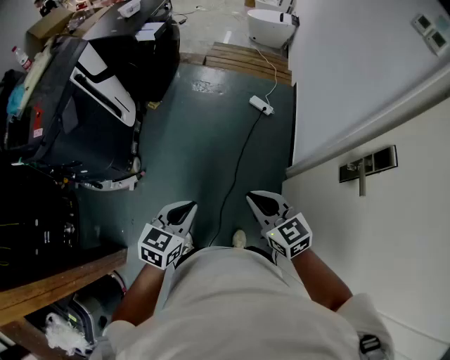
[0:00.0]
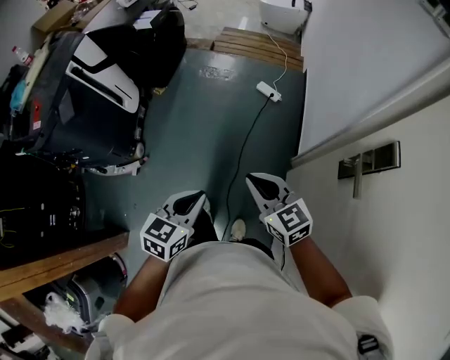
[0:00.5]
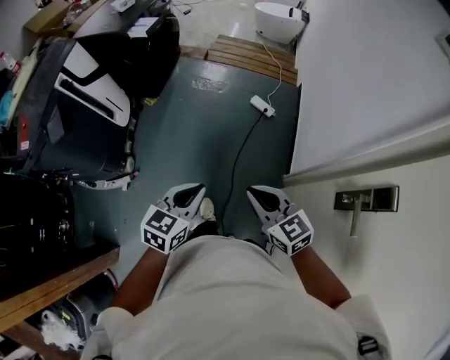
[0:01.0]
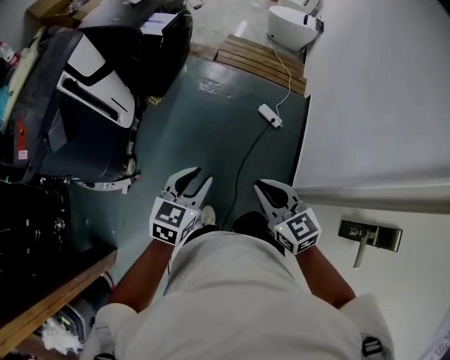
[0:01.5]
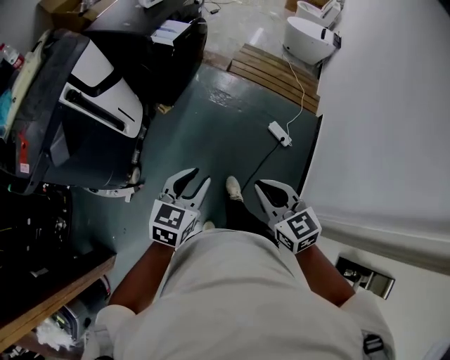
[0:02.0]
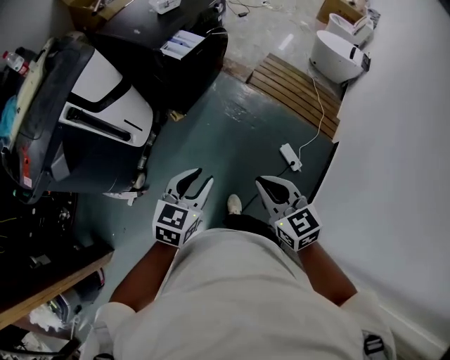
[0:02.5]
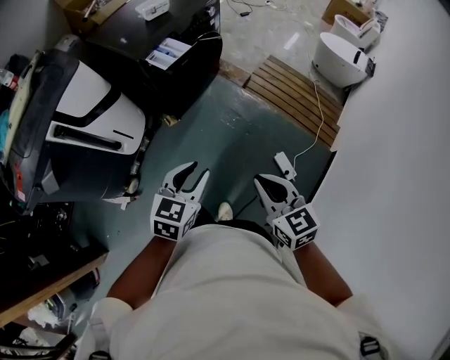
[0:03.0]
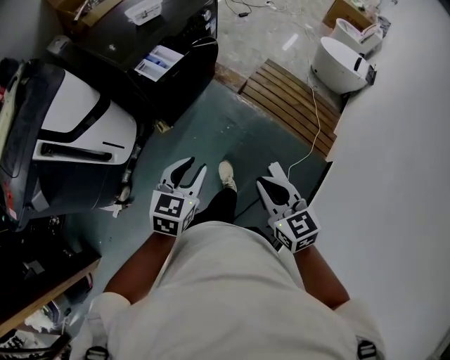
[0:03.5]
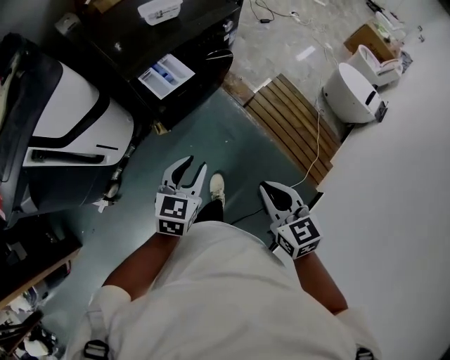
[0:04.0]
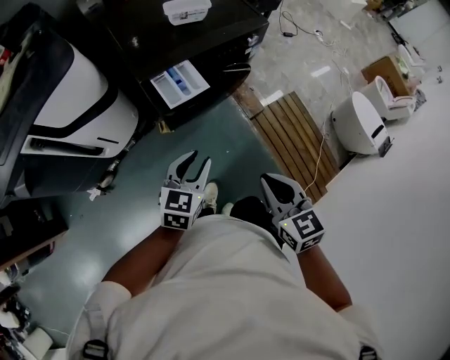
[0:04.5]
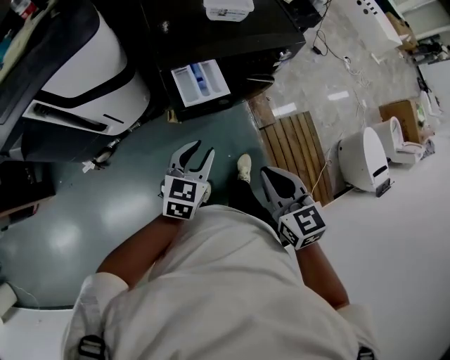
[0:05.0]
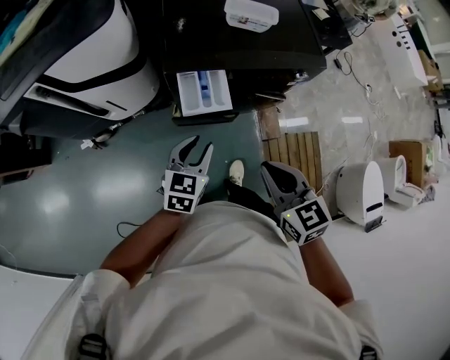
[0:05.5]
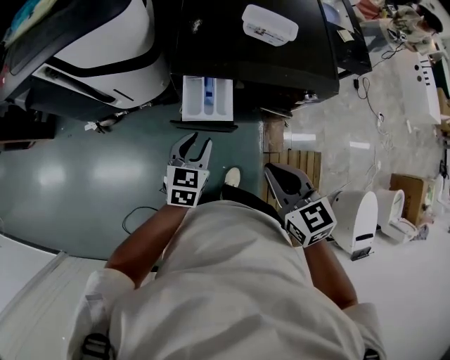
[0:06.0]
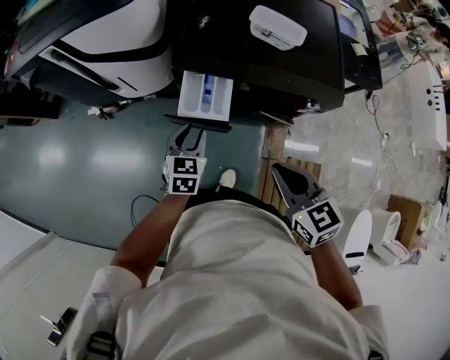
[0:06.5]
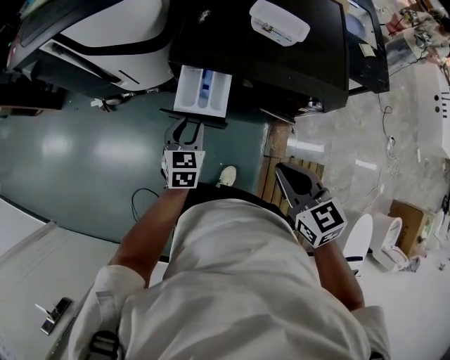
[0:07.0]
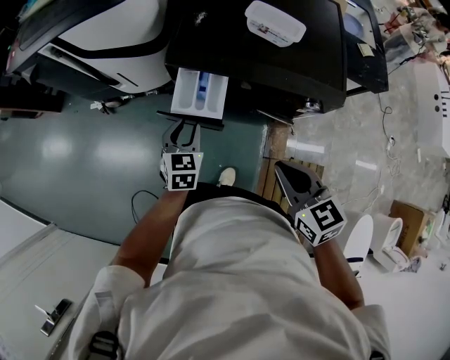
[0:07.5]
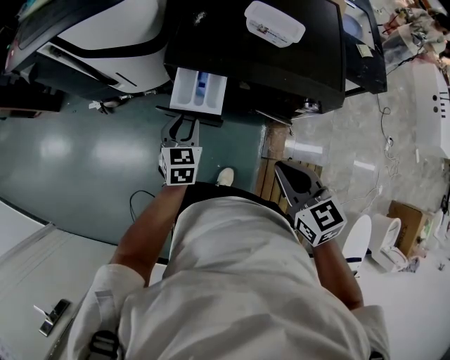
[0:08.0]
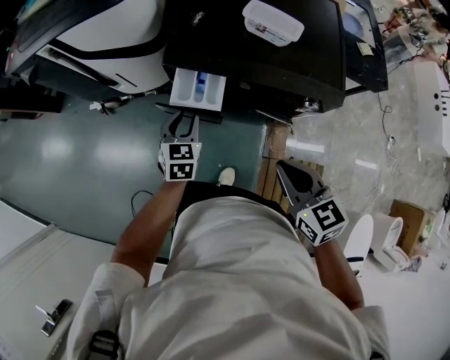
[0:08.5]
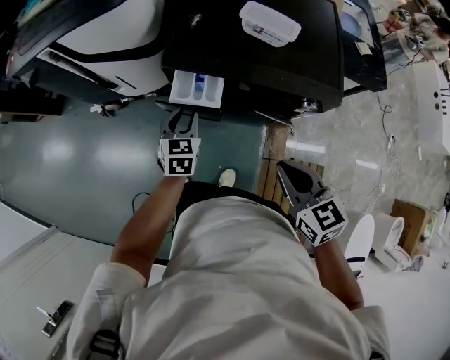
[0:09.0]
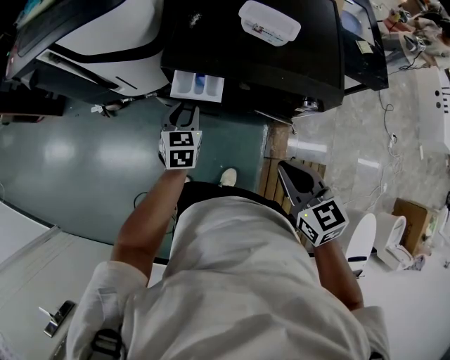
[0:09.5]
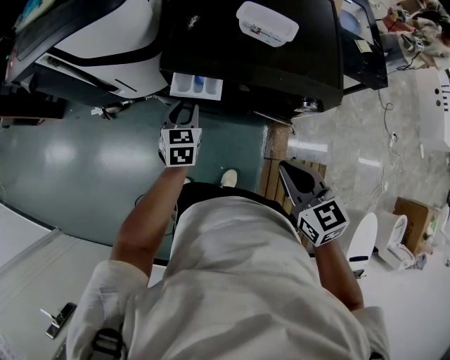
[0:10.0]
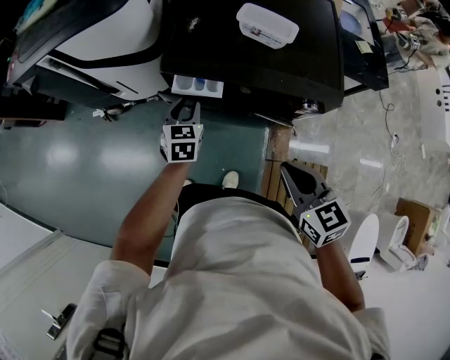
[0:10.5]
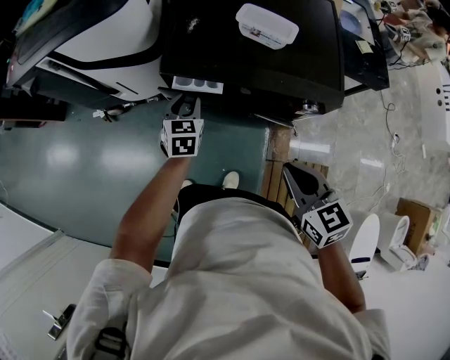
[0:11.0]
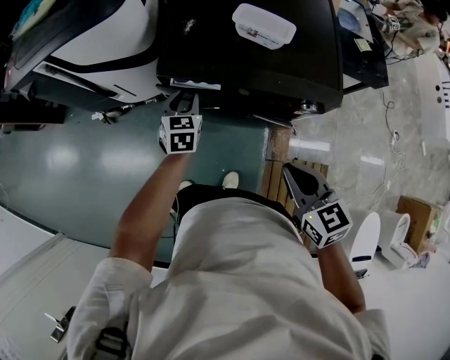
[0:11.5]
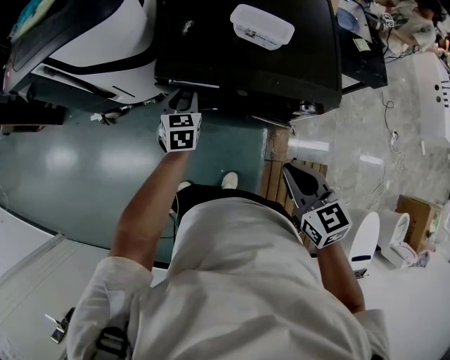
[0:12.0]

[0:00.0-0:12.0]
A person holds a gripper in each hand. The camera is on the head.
0:00.0 to 0:02.0: The grippers both shift forward by approximately 35 cm. The left gripper opens.
0:02.0 to 0:04.0: Both grippers are carried forward, roughly 50 cm. The left gripper swivels some 30 degrees.
0:04.0 to 0:06.0: The left gripper changes place by roughly 25 cm, and turns by approximately 50 degrees. Meanwhile the right gripper changes place by approximately 35 cm, and changes its angle by approximately 50 degrees.
0:06.0 to 0:08.0: The right gripper shifts about 10 cm to the right. Meanwhile the left gripper ends up some 5 cm from where it was, and turns by approximately 20 degrees.
0:08.0 to 0:10.0: The left gripper shifts by about 5 cm.
0:10.0 to 0:12.0: The left gripper travels forward by roughly 5 cm.

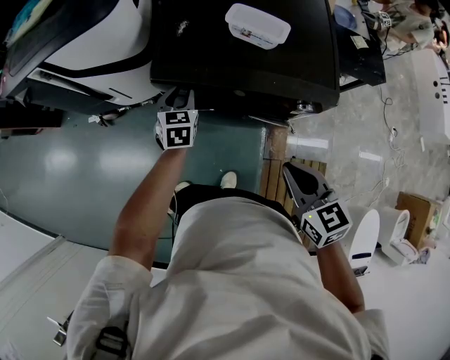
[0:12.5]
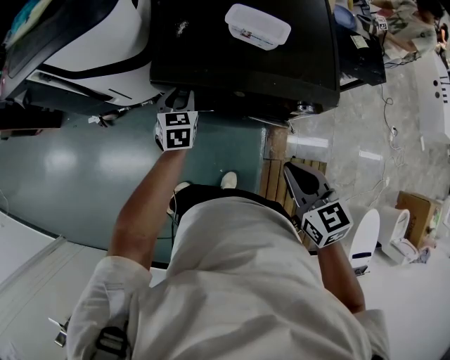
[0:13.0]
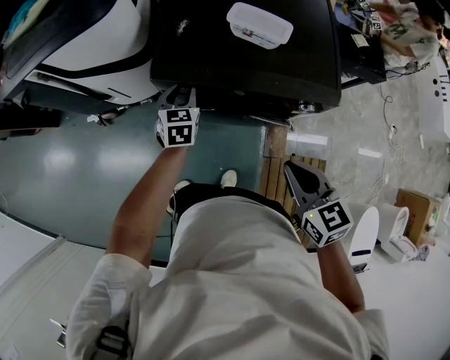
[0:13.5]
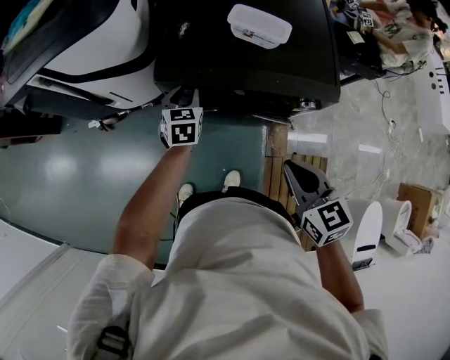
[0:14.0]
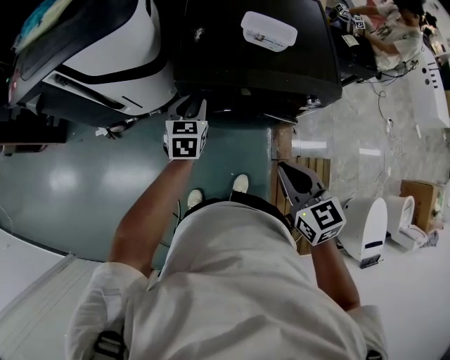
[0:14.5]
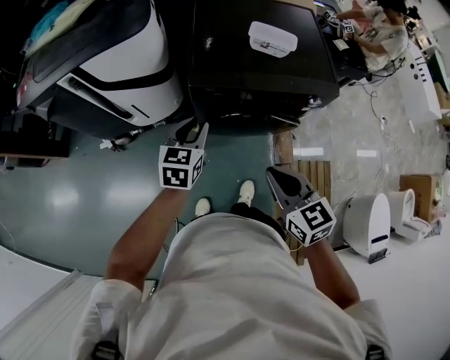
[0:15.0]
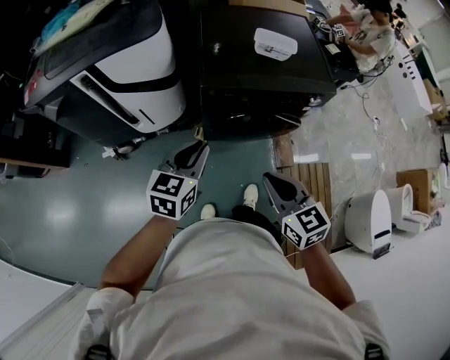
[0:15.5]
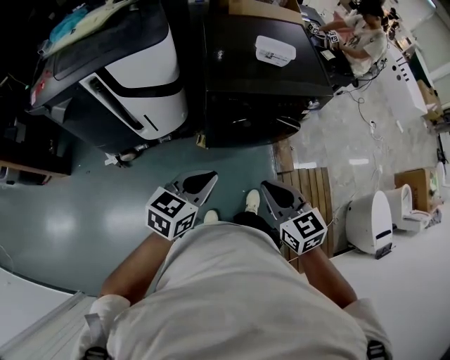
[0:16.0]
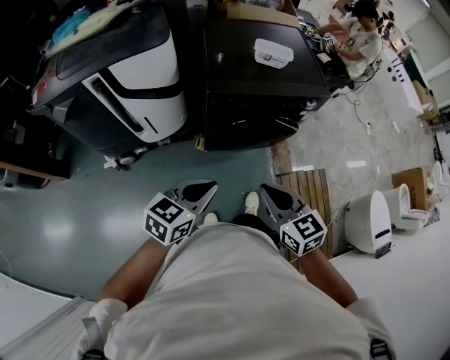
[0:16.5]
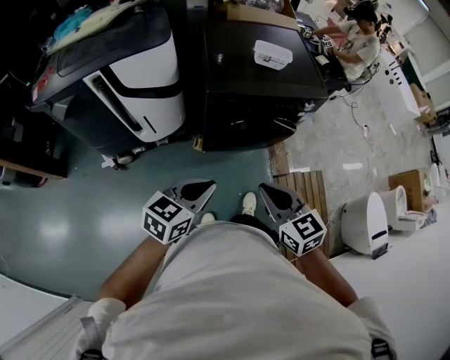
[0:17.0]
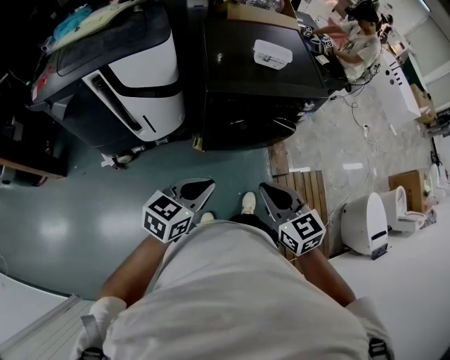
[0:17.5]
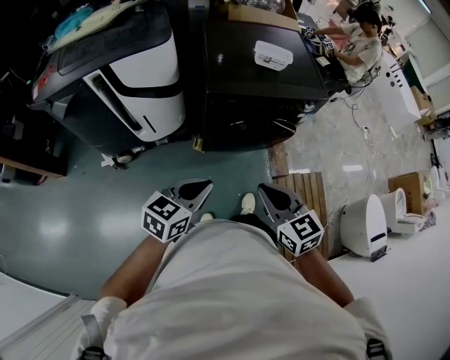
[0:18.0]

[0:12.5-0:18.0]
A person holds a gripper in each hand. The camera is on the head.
0:12.5 to 0:14.5: The left gripper changes place by about 5 cm. The right gripper is displaced to the left by roughly 10 cm.
0:14.5 to 0:16.0: The left gripper heads backward and upward, covering roughly 30 cm, swivels some 40 degrees, and closes its fingers. The right gripper travels to the left and backward by approximately 20 cm.
0:16.0 to 0:18.0: The grippers make only small movements.

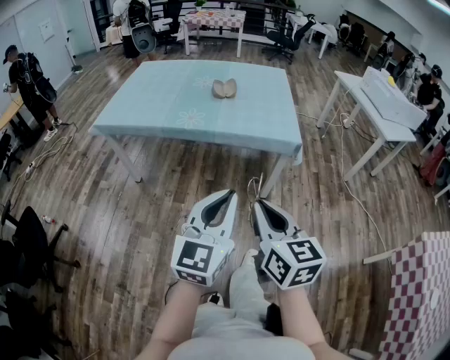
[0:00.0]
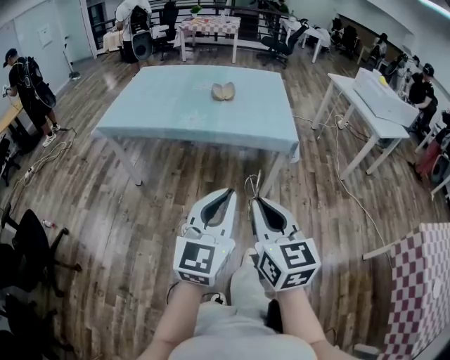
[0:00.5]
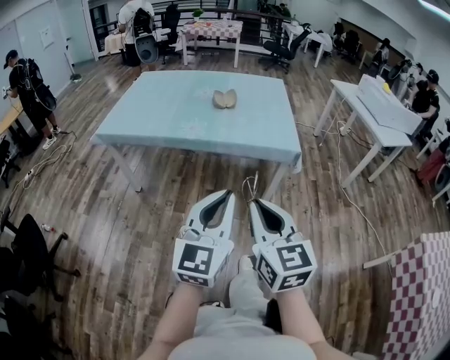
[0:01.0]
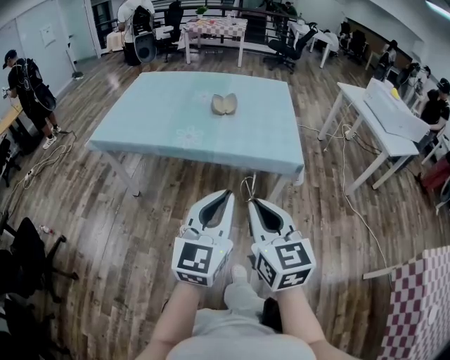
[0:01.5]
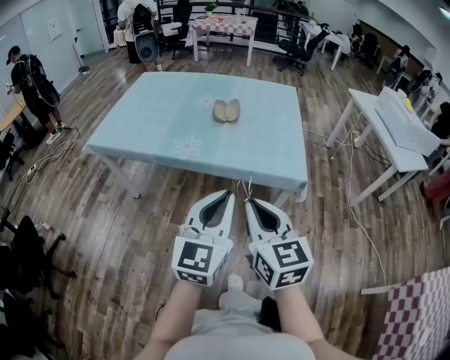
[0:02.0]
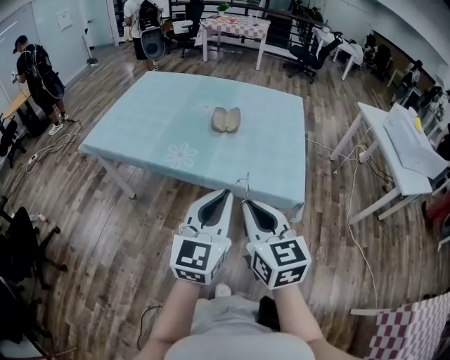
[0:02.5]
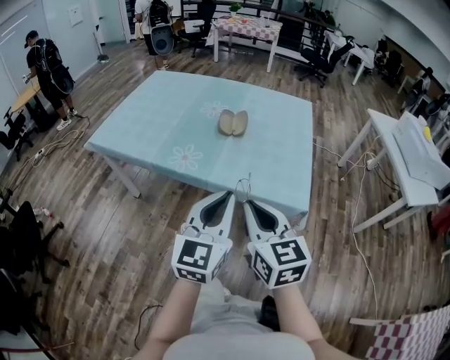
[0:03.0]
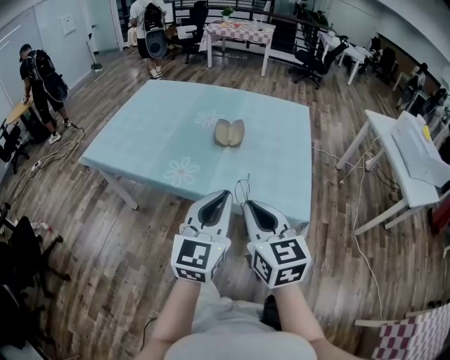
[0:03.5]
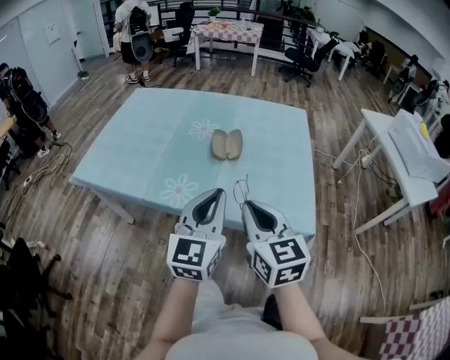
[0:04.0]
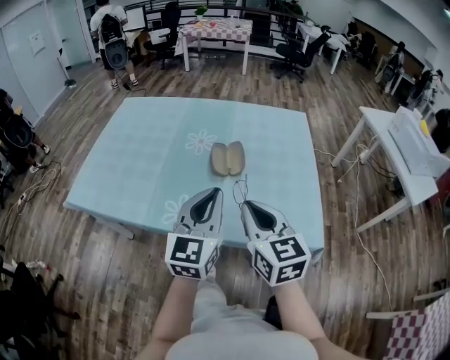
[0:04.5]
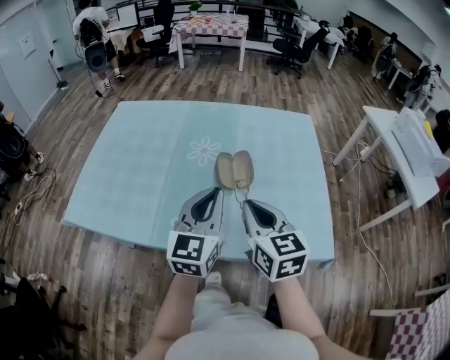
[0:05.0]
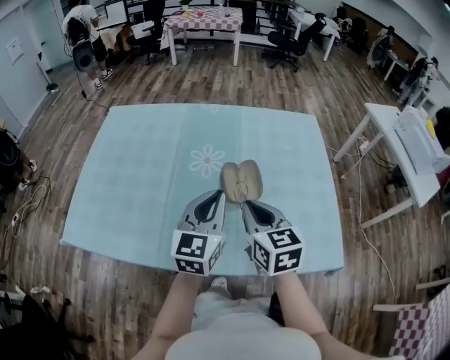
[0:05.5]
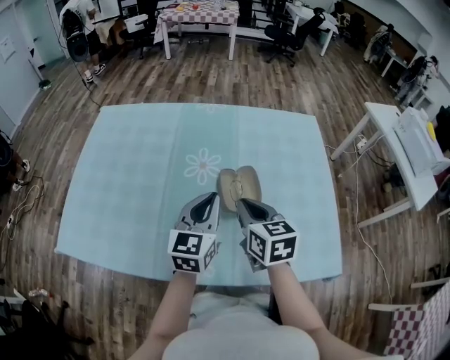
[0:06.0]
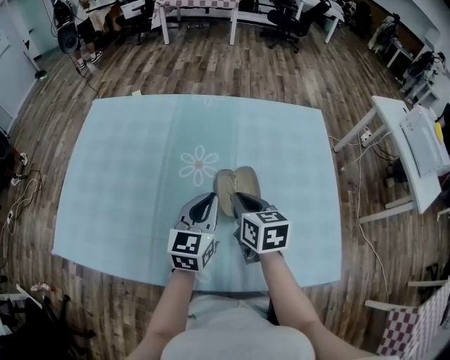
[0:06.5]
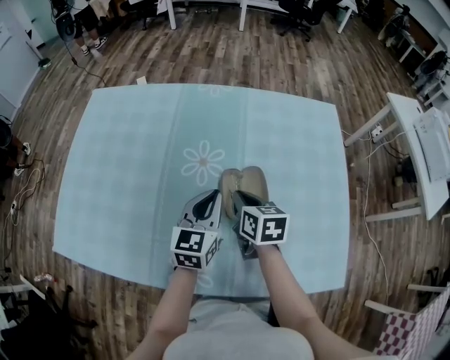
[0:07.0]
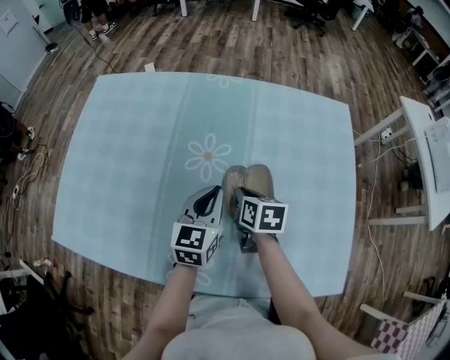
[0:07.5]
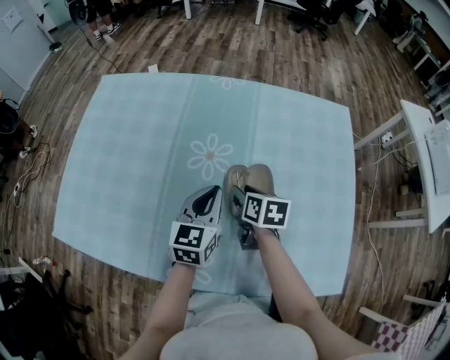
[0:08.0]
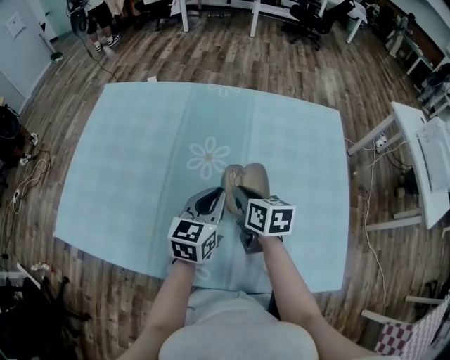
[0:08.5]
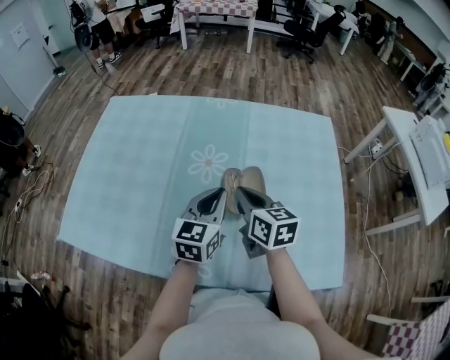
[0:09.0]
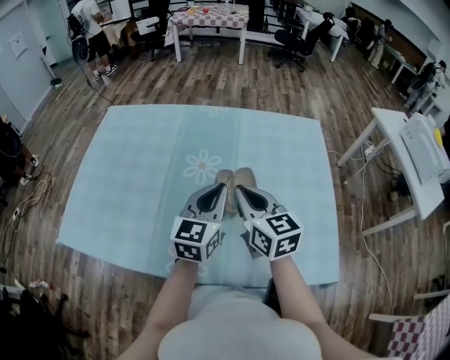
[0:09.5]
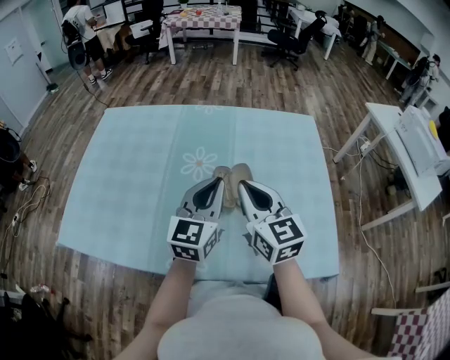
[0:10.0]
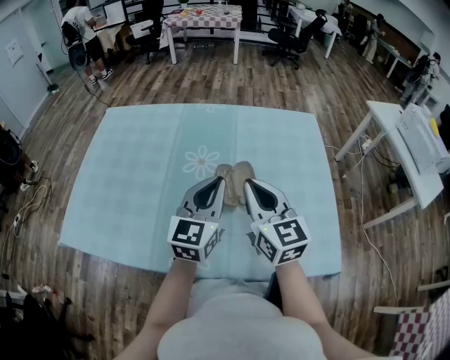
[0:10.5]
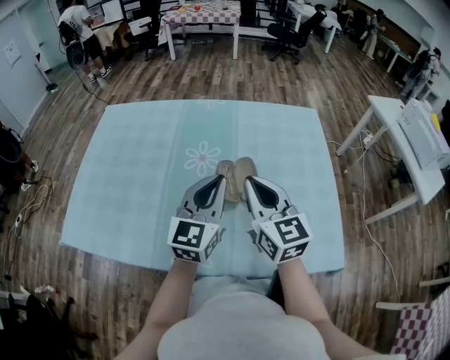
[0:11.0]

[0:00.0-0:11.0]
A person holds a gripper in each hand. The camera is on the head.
0:00.0 to 0:02.0: Both grippers move forward, approximately 15 cm.
0:02.0 to 0:03.5: Both grippers travel together forward, approximately 15 cm.
0:03.5 to 0:05.5: Both grippers travel together forward, approximately 35 cm.
0:05.5 to 0:07.5: The grippers both shift downward and forward by about 20 cm. The right gripper rotates approximately 30 degrees.
0:07.5 to 0:09.0: The right gripper shifts approximately 15 cm upward, changes its angle by approximately 30 degrees, and opens, then closes once more, while the left gripper moves upward, roughly 5 cm.
0:09.0 to 0:11.0: The left gripper heads upward, covering some 10 cm. The right gripper goes some 10 cm upward and backward, and swivels roughly 30 degrees.
